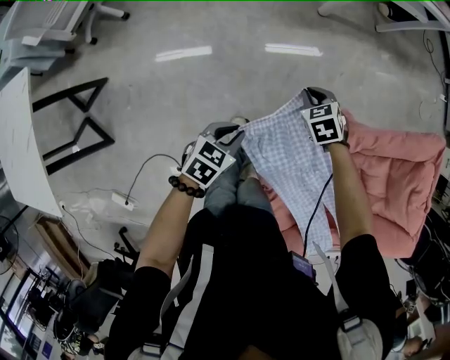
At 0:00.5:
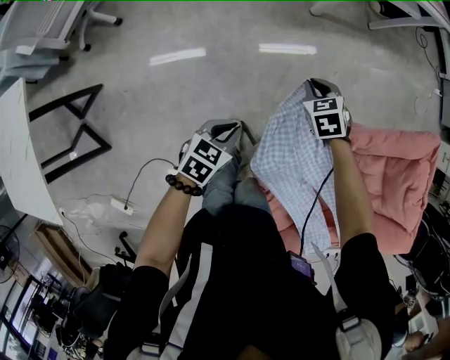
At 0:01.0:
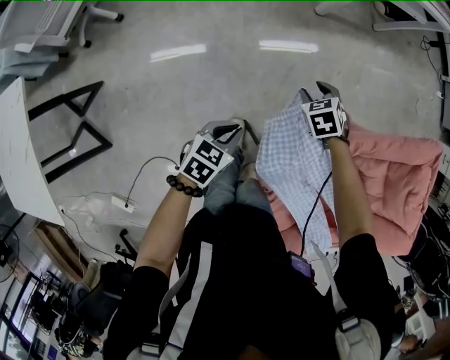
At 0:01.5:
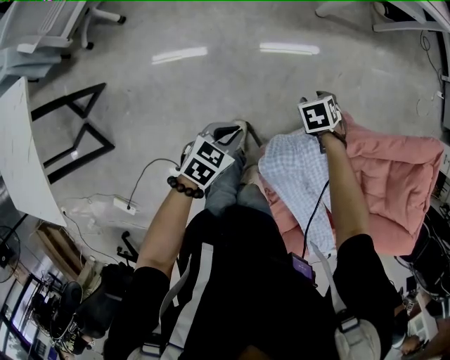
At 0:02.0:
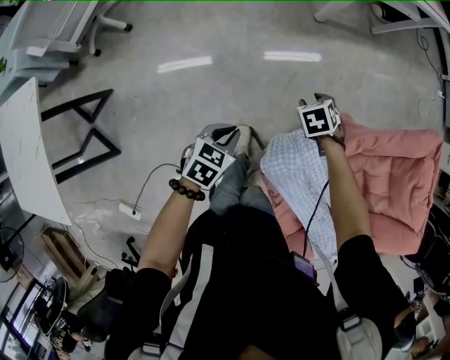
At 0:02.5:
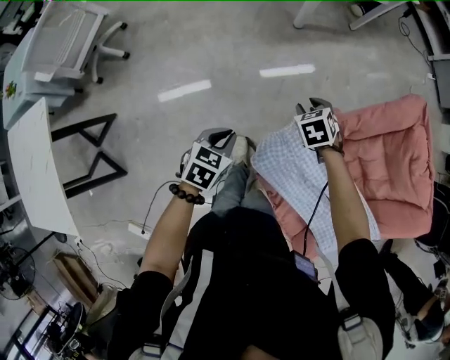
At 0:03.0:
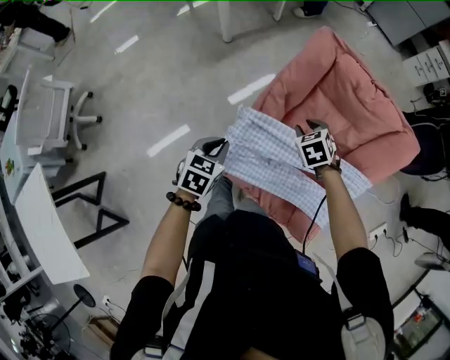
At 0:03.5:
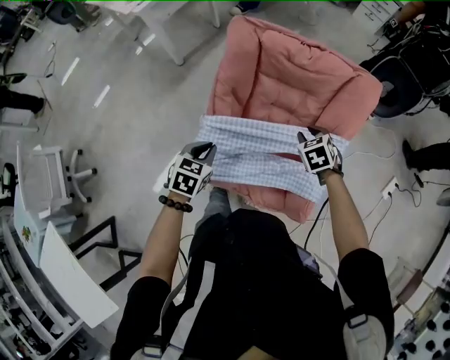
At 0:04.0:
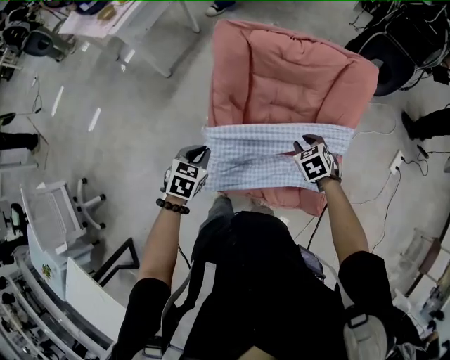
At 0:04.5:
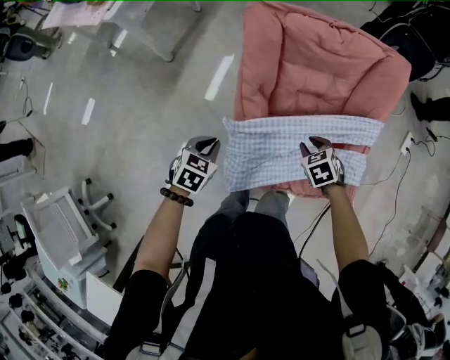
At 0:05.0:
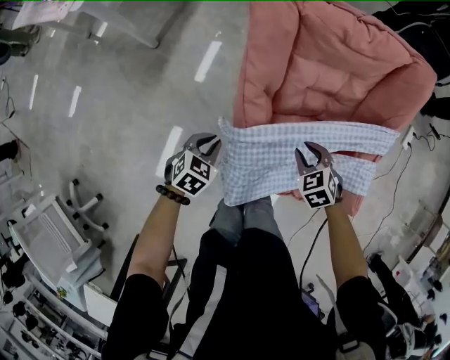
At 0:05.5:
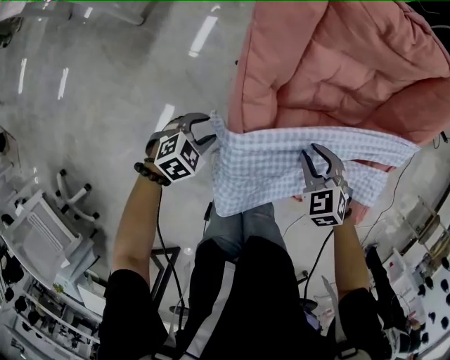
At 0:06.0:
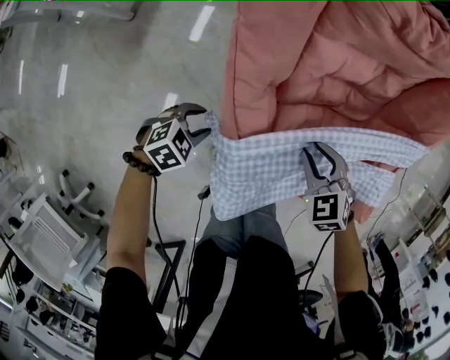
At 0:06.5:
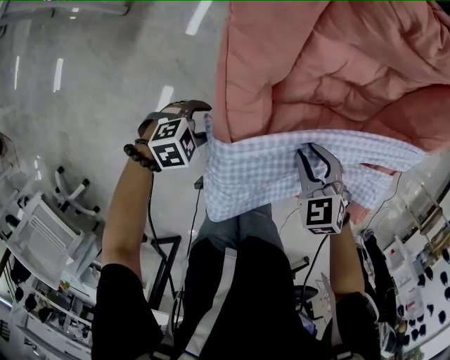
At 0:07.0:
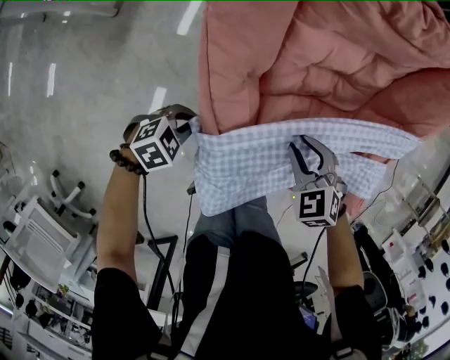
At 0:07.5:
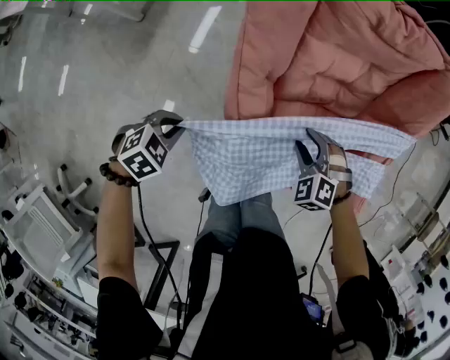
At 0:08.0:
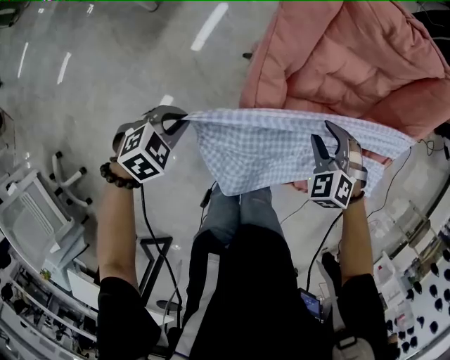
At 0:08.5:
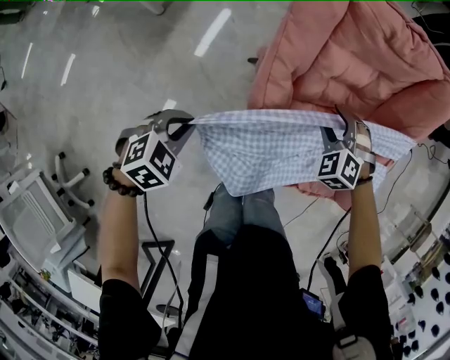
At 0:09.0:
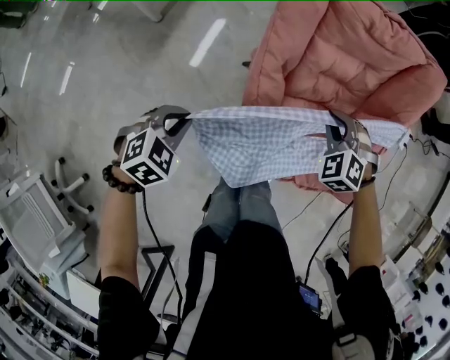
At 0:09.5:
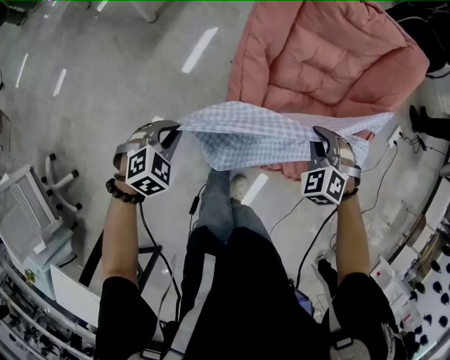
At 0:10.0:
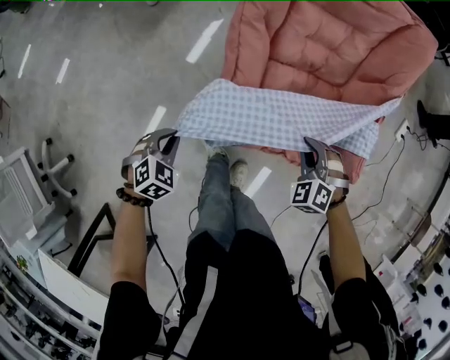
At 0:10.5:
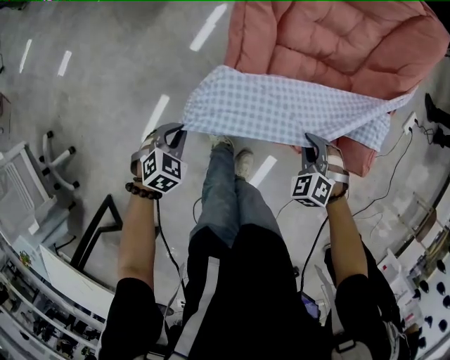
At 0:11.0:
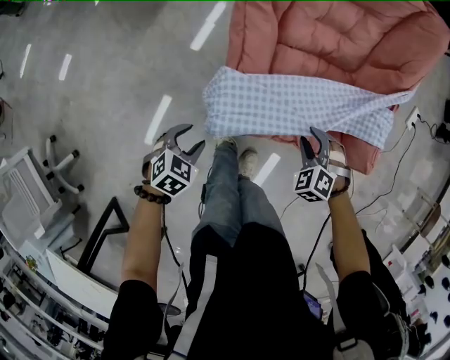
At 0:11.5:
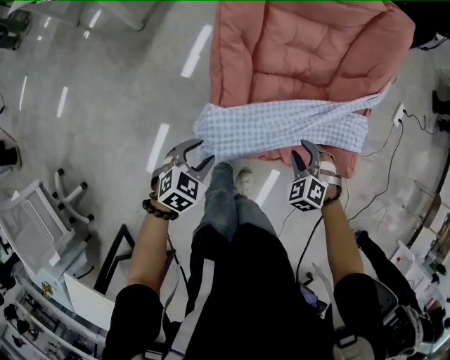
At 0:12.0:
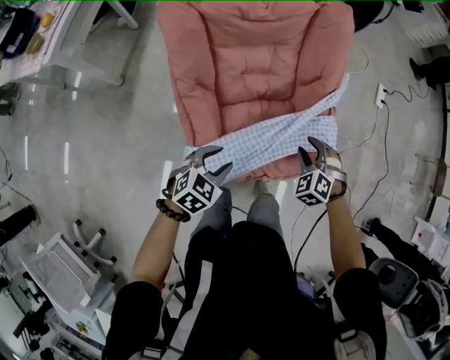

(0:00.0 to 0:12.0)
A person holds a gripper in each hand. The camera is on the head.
0:00.0 - 0:02.0: The right gripper opens.
0:02.0 - 0:04.0: The left gripper changes place by about 35 cm, and rotates around the line of its fingers by roughly 40 degrees, clockwise from behind. Meanwhile the right gripper ends up about 50 cm from where it was, and rotates around the line of its fingers by roughly 40 degrees, clockwise from behind.
0:04.0 - 0:06.0: The right gripper heads downward, covering about 15 cm. The left gripper is displaced downward by some 30 cm, changes its angle by some 50 degrees, and opens.
0:06.0 - 0:08.0: The right gripper moves approximately 5 cm, and changes its angle by approximately 30 degrees. Meanwhile the left gripper moves upward, about 10 cm, and closes.
0:08.0 - 0:10.0: Both grippers move backward and to the right, approximately 20 cm. The left gripper changes its angle by about 20 degrees. Meanwhile the right gripper closes.
0:10.0 - 0:12.0: The left gripper shifts by approximately 30 cm, turns by about 30 degrees, and opens up; the right gripper moves approximately 15 cm, rotates roughly 20 degrees, and opens.

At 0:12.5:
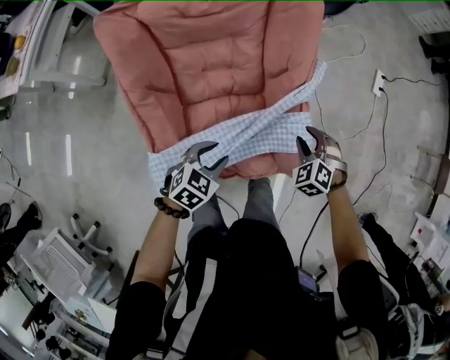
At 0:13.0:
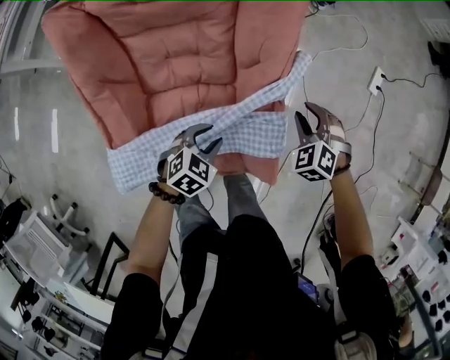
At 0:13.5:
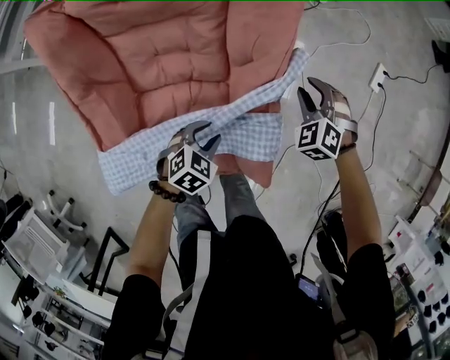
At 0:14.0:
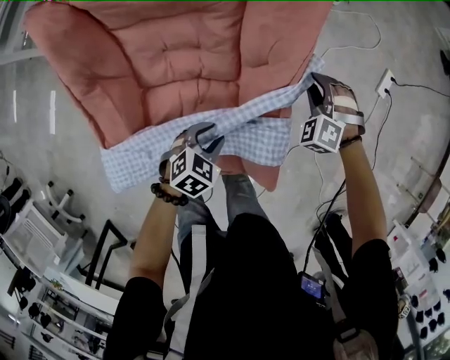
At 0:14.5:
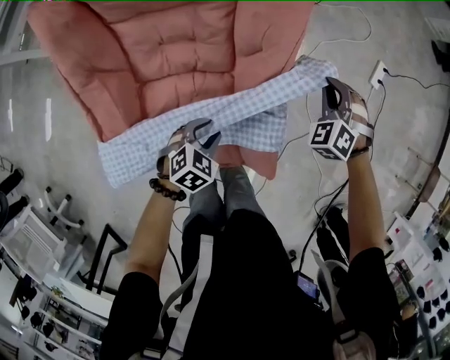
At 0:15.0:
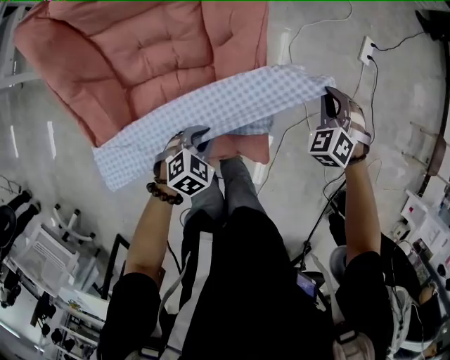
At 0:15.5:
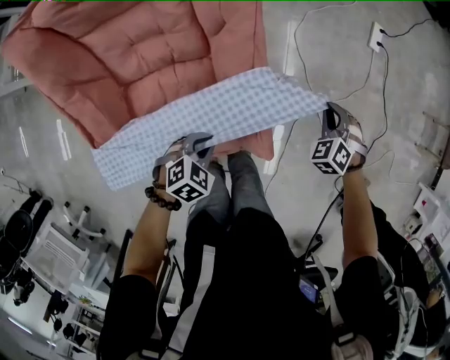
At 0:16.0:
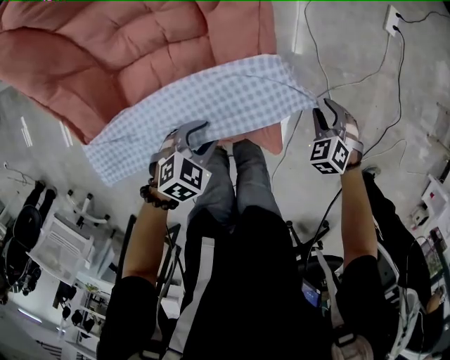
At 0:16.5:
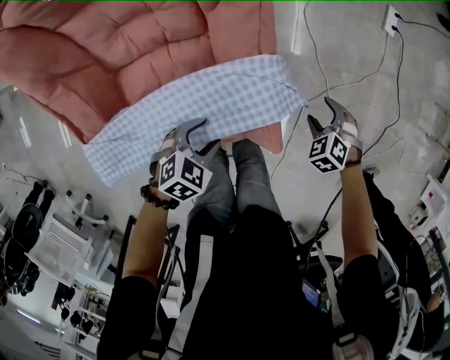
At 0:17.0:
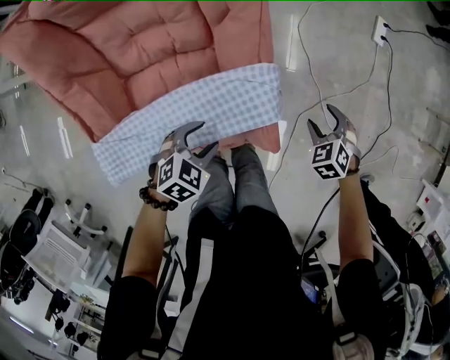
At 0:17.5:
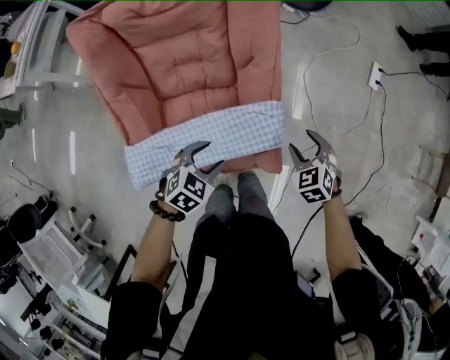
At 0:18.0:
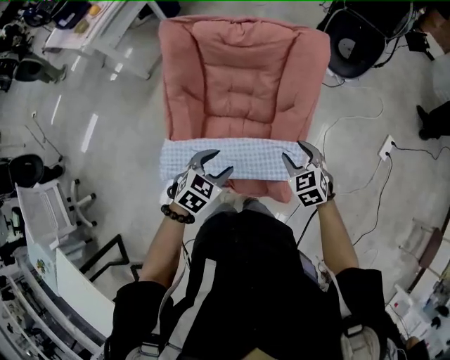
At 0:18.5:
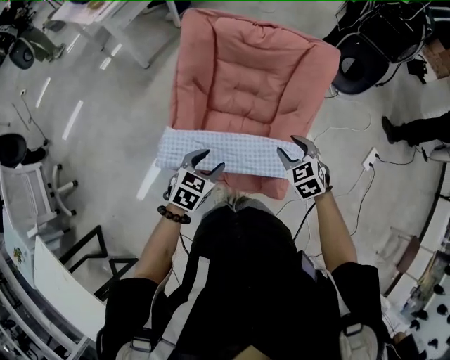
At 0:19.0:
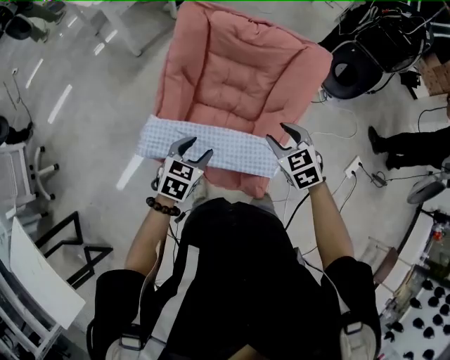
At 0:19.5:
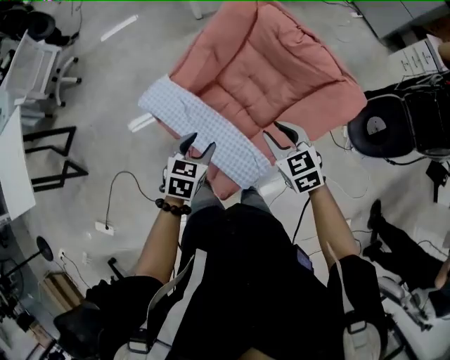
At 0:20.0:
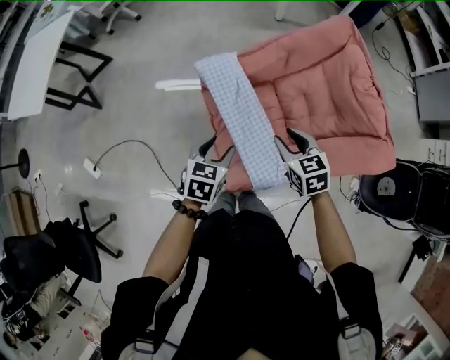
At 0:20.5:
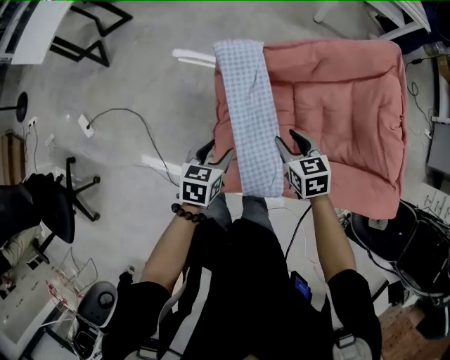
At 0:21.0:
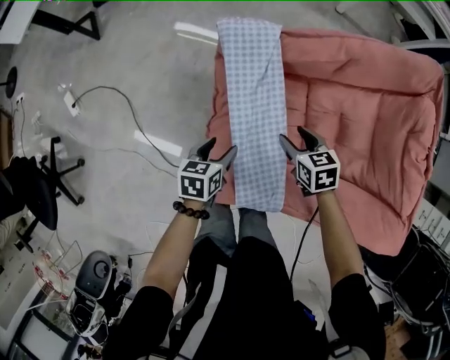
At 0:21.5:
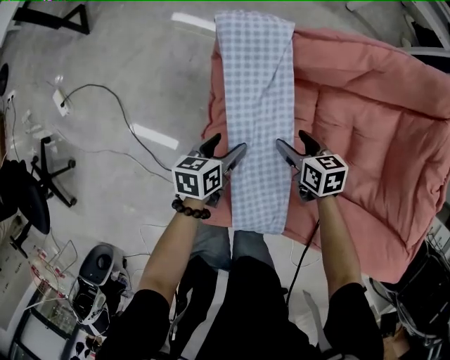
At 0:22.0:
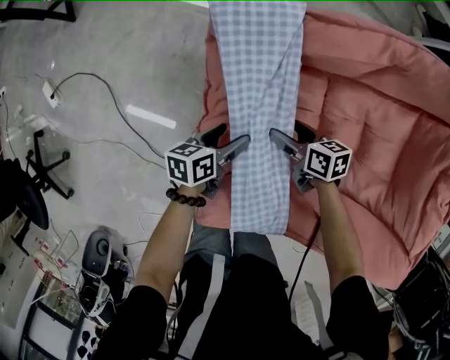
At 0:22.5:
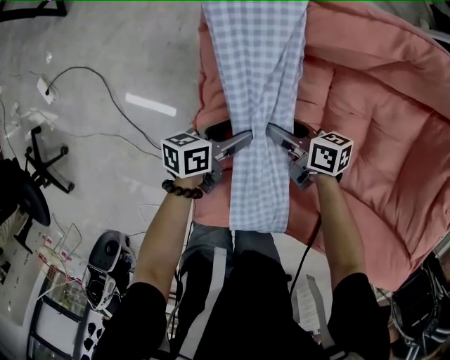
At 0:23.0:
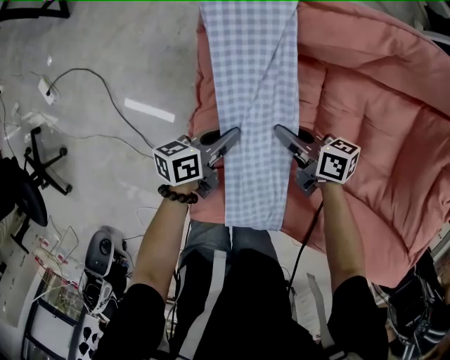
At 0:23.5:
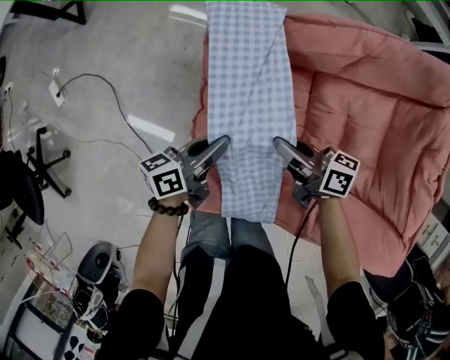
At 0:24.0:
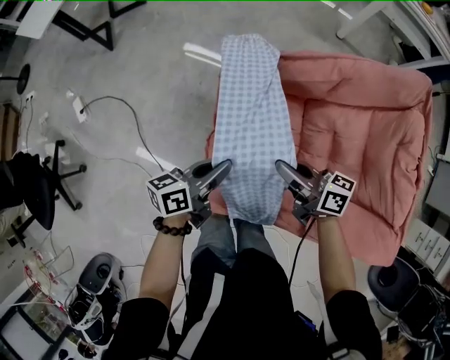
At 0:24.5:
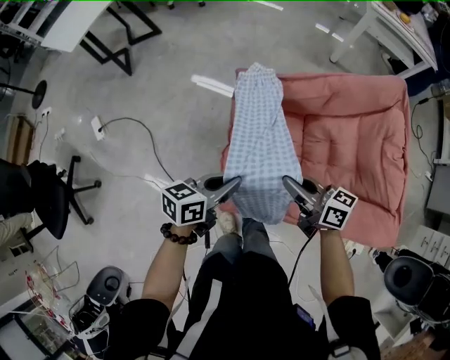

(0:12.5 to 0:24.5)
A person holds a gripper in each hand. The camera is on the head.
0:12.5 - 0:14.5: The right gripper travels forward by approximately 20 cm, and closes its fingers. The left gripper moves downward, to the right and forward, some 15 cm.
0:14.5 - 0:16.5: The left gripper shifts by approximately 10 cm, while the right gripper shifts by approximately 30 cm, rotates some 30 degrees, and opens its fingers.
0:16.5 - 0:18.5: Both grippers travel together upward, some 30 cm. The right gripper turns by roughly 30 degrees; the left gripper turns by some 50 degrees.
0:18.5 - 0:20.5: The left gripper ends up about 20 cm from where it was, and turns by some 90 degrees, while the right gripper goes approximately 5 cm downward, and changes its angle by about 60 degrees.
0:20.5 - 0:22.5: The grippers both shift downward by roughly 25 cm. The left gripper turns by approximately 40 degrees; the right gripper turns by some 50 degrees, and opens and closes again.
0:22.5 - 0:24.5: The two grippers go approximately 35 cm upward. The right gripper rotates roughly 30 degrees, and closes. The left gripper turns by approximately 30 degrees, and closes its fingers.

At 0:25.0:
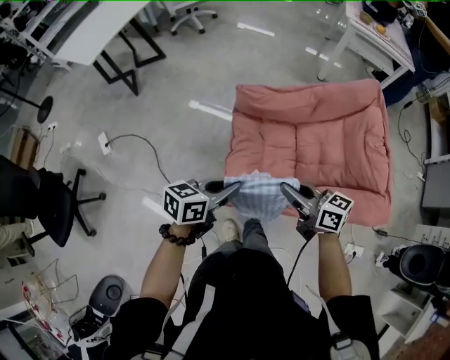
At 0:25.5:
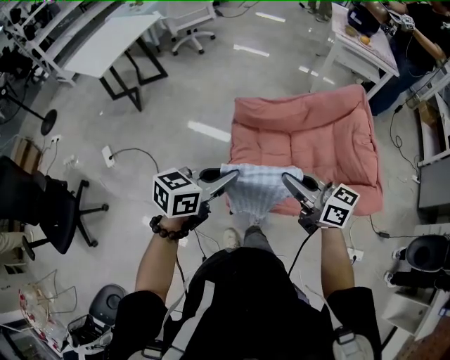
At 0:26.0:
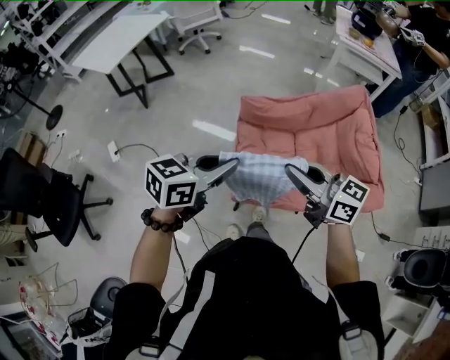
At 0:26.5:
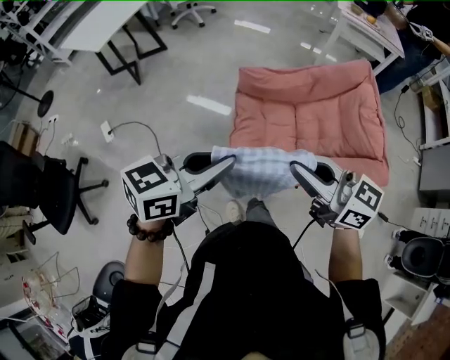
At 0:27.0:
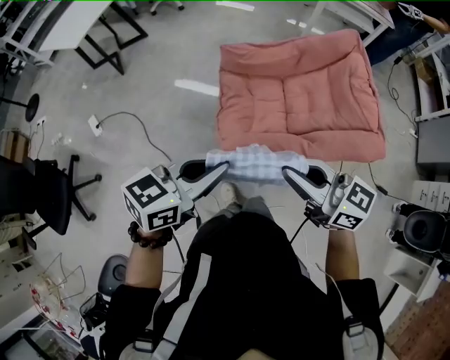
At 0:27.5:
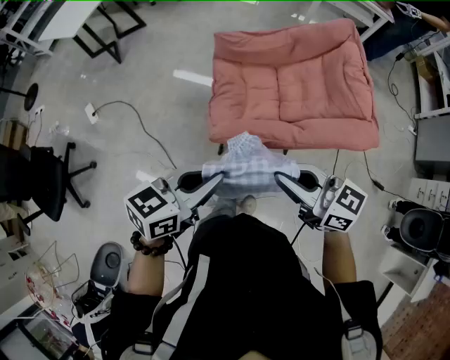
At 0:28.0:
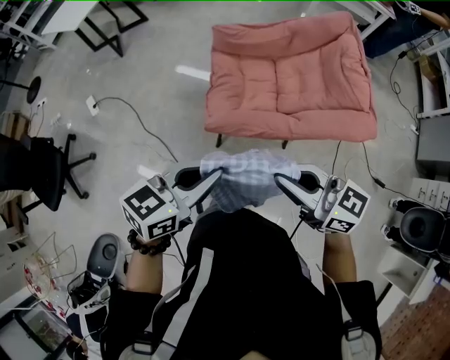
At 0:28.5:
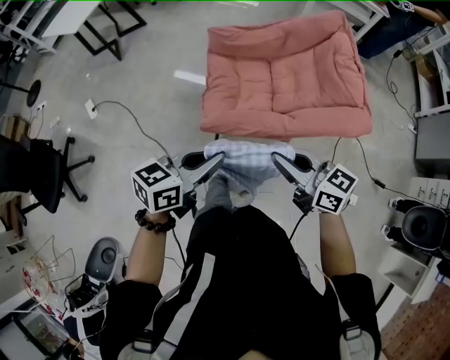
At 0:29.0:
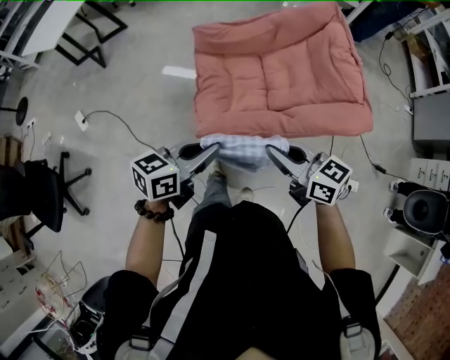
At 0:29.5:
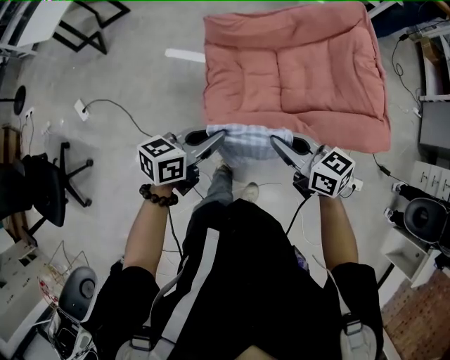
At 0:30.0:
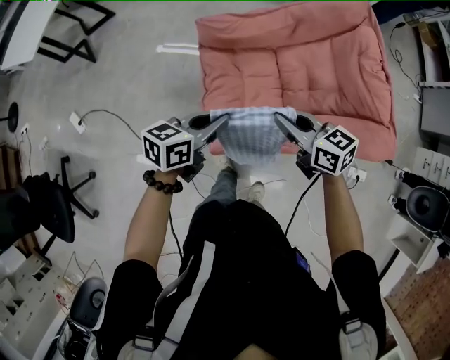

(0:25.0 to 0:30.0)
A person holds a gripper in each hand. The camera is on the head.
0:25.0 - 0:27.5: The two grippers go approximately 25 cm backward and upward.
0:27.5 - 0:30.0: Both grippers move forward and downward, some 30 cm. The right gripper turns by approximately 20 degrees.
